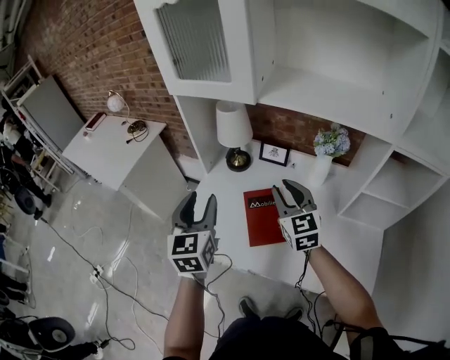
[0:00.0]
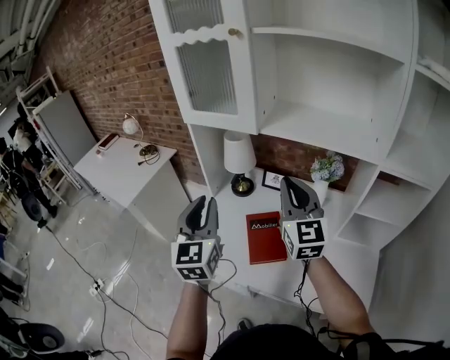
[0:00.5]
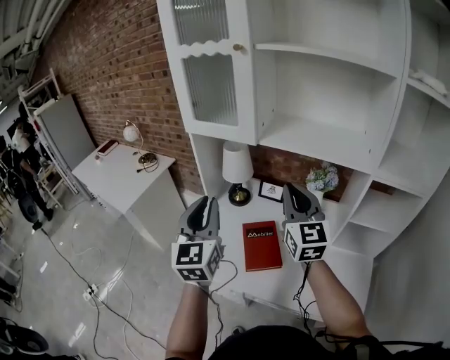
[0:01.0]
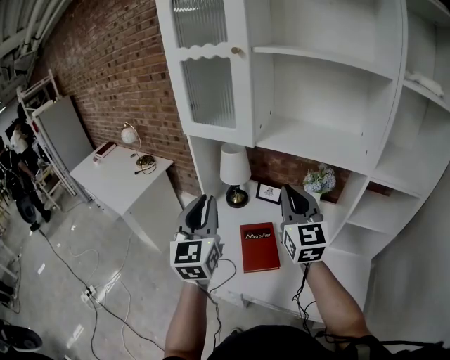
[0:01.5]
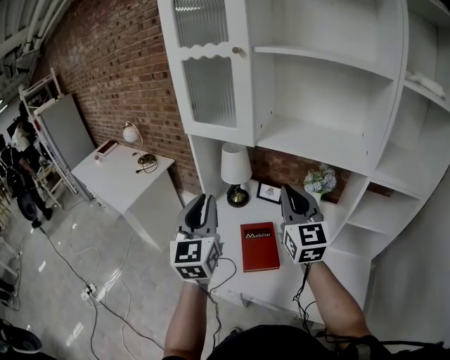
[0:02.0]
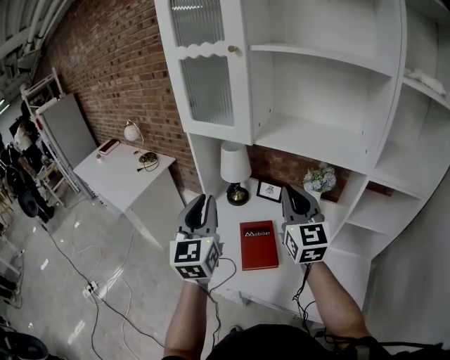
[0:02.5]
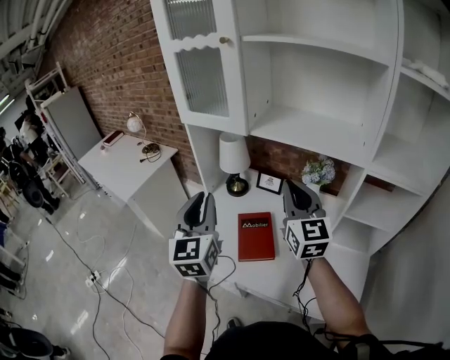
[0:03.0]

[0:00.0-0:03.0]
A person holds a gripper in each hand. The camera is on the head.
0.0 to 1.5 s: The grippers both shift upward by some 15 cm. The left gripper closes.
1.5 to 3.0 s: The grippers stay close to where they were, moving slightly.

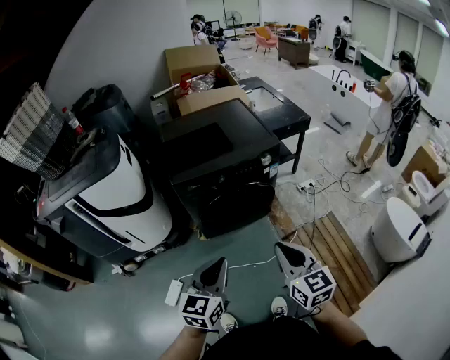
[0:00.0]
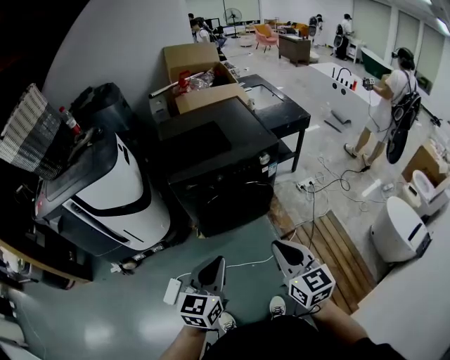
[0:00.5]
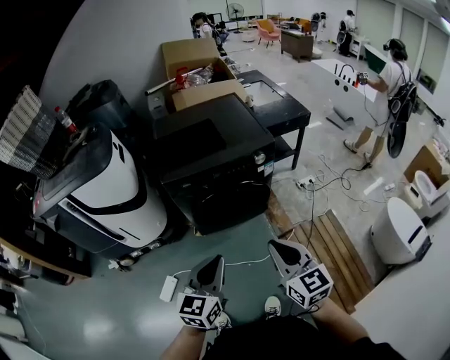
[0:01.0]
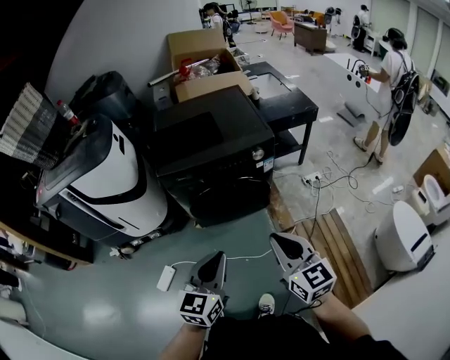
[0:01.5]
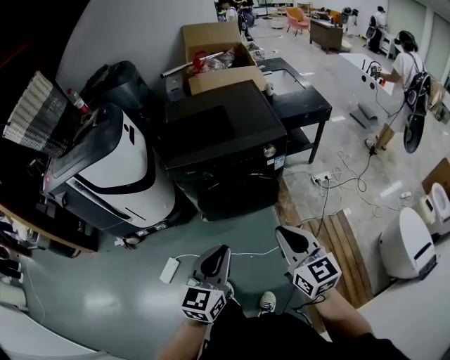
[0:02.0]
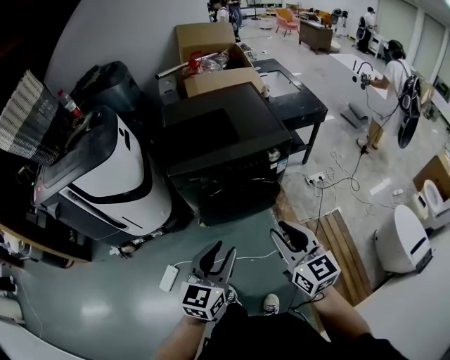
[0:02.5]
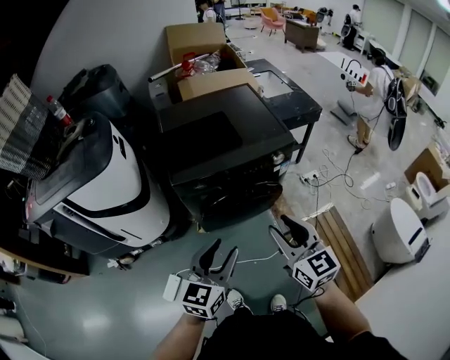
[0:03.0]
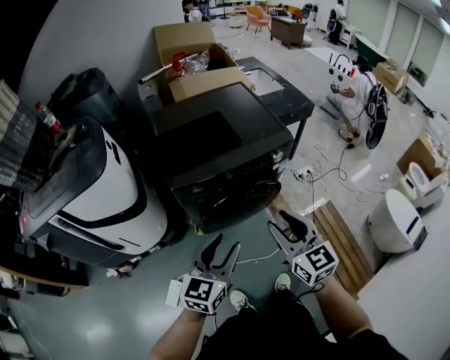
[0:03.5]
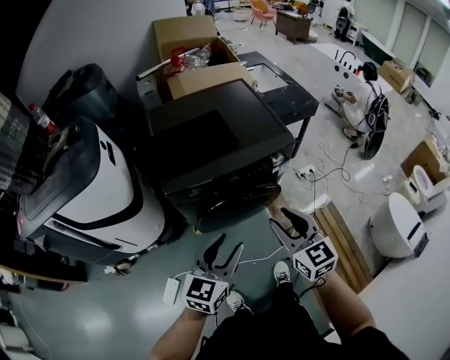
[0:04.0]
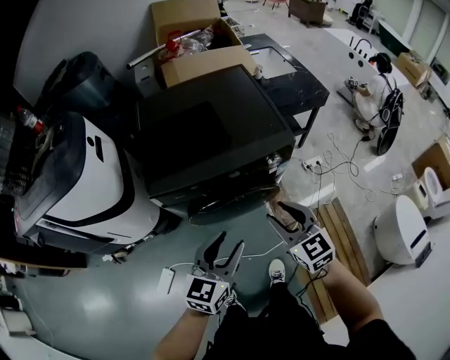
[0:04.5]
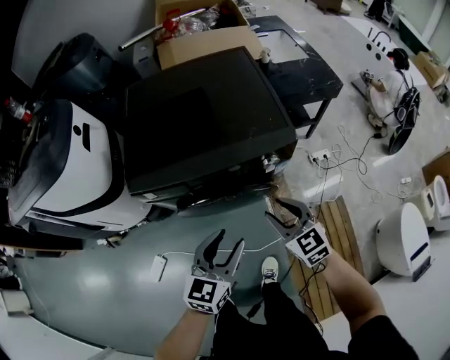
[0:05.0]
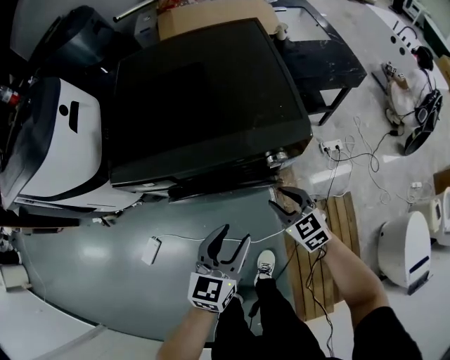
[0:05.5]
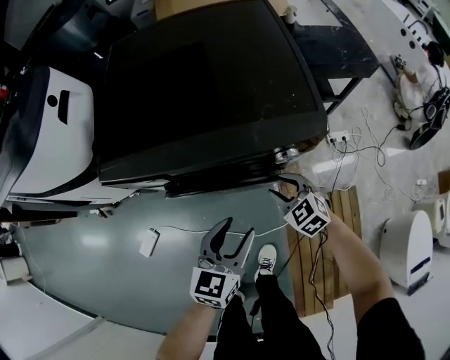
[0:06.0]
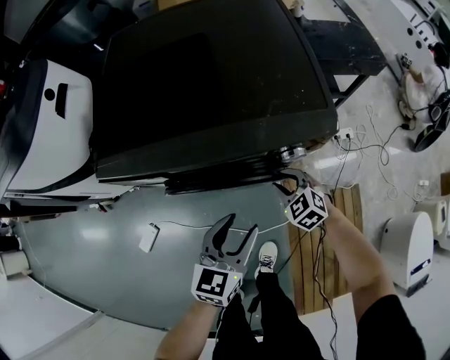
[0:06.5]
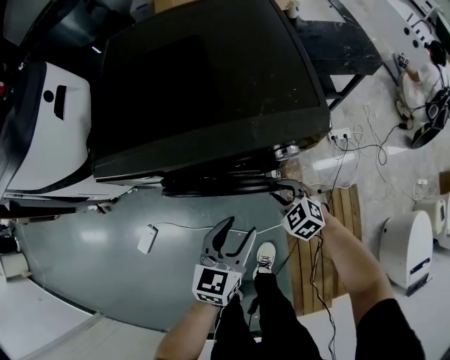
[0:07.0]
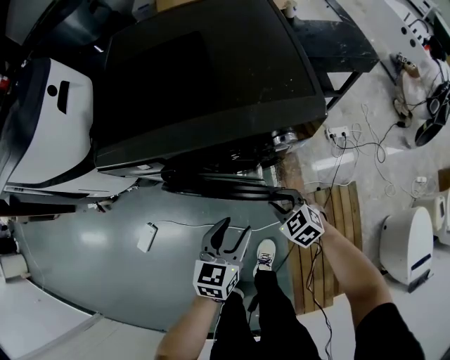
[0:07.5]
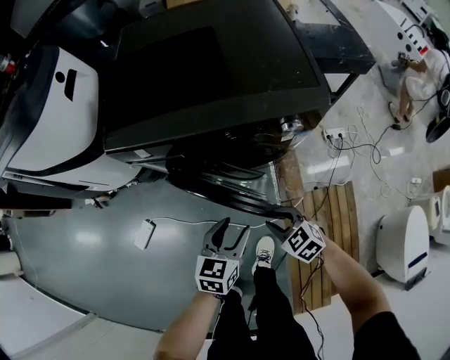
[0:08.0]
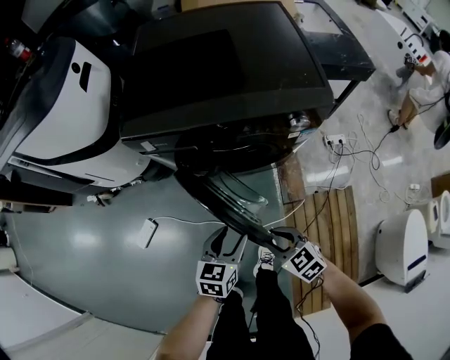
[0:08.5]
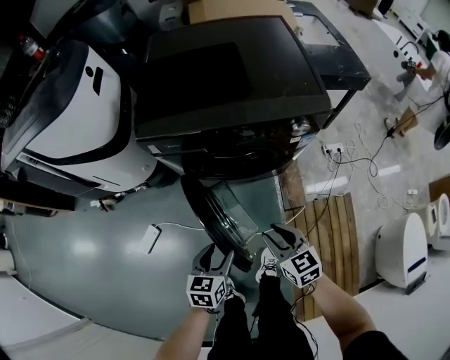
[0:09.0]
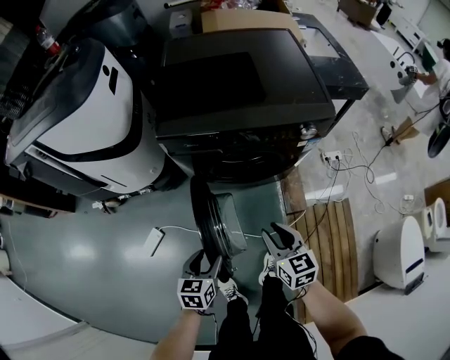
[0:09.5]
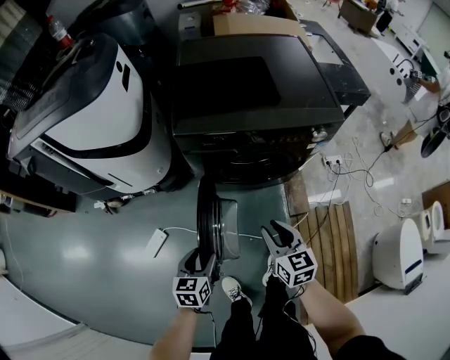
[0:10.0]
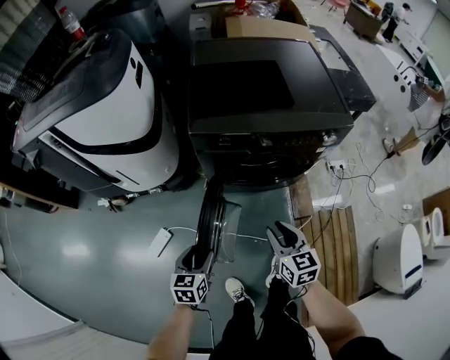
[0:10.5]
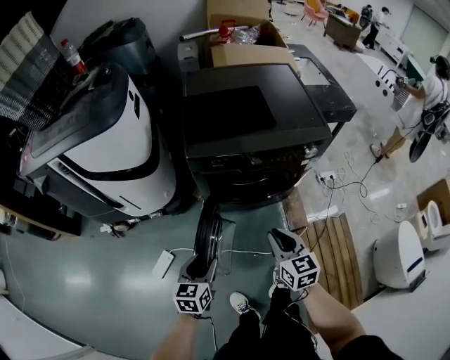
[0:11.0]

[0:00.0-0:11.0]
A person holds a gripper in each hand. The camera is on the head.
0.0 to 2.0 s: The left gripper is displaced to the right by approximately 10 cm. Meanwhile the right gripper moves to the right and forward, roughly 10 cm.
2.0 to 3.5 s: Both grippers travel together to the left and forward, roughly 15 cm. The right gripper opens its fingers; the left gripper opens its fingers.
3.5 to 5.5 s: The left gripper goes roughly 30 cm to the right, downward and forward, and changes its angle by approximately 20 degrees; the right gripper heads downward, forward and to the right, covering about 40 cm, and turns by roughly 40 degrees.
5.5 to 7.5 s: The two grippers go approximately 10 cm downward.
7.5 to 9.0 s: The left gripper travels to the left and backward by some 20 cm. The right gripper travels backward, to the left and upward by roughly 20 cm, and rotates roughly 30 degrees.
9.0 to 11.0 s: The right gripper heads upward and to the left, covering approximately 15 cm. The left gripper heads to the left and upward, covering roughly 20 cm.

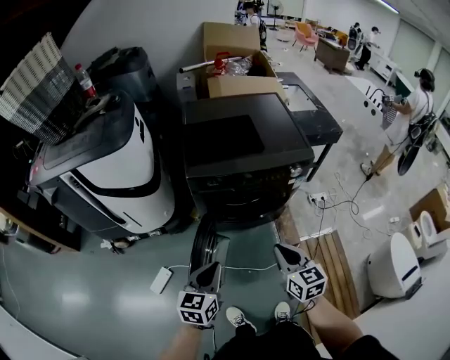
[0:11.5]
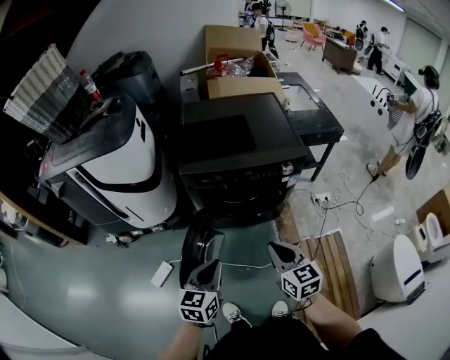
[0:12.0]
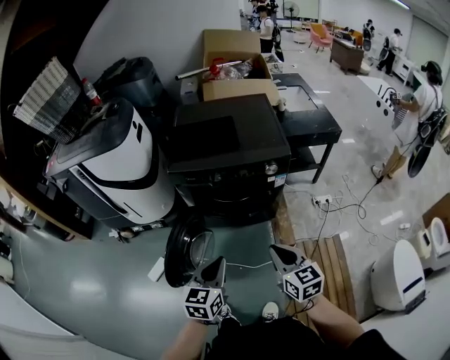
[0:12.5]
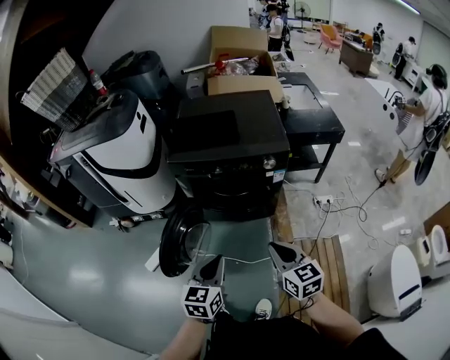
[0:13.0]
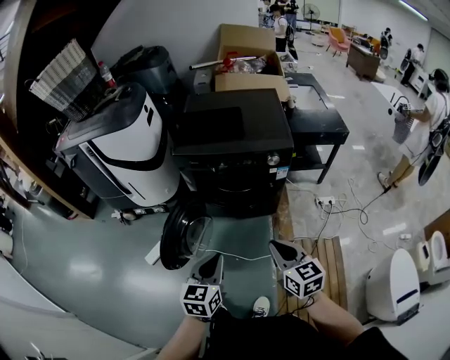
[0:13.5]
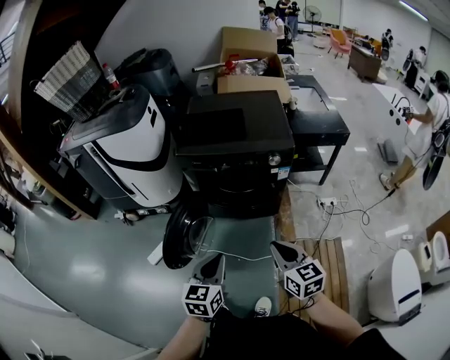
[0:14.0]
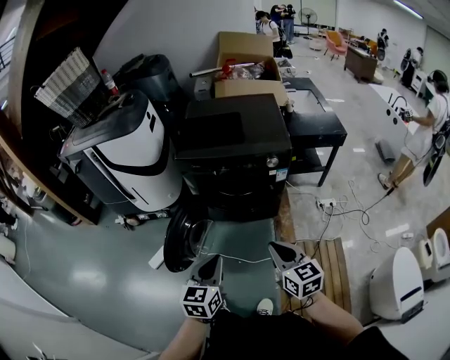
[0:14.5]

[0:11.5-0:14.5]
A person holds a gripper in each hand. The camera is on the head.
11.5 to 13.0 s: Both grippers travel together to the right and backward, roughly 20 cm.
13.0 to 14.5 s: The left gripper ends up roughly 5 cm from where it was.

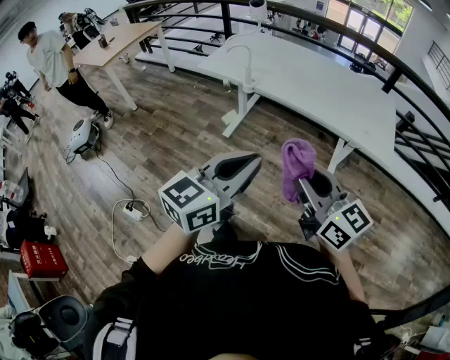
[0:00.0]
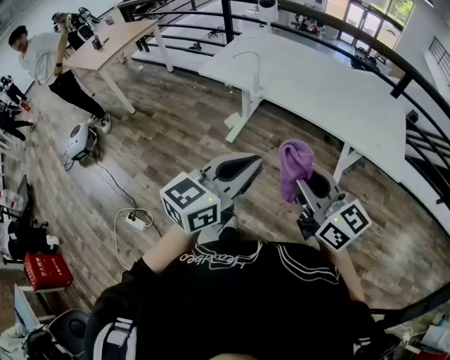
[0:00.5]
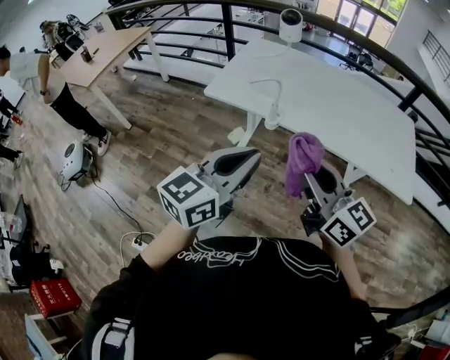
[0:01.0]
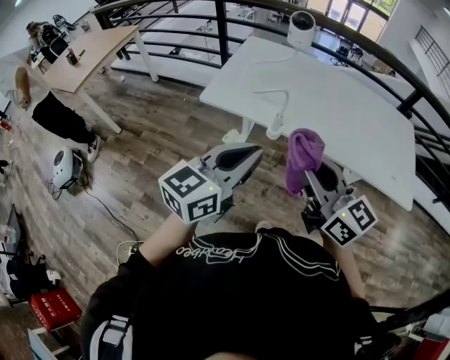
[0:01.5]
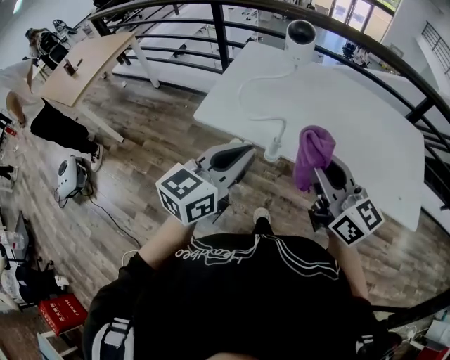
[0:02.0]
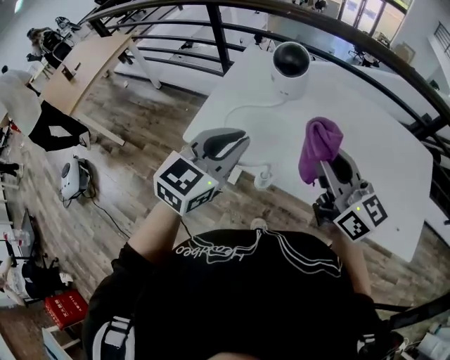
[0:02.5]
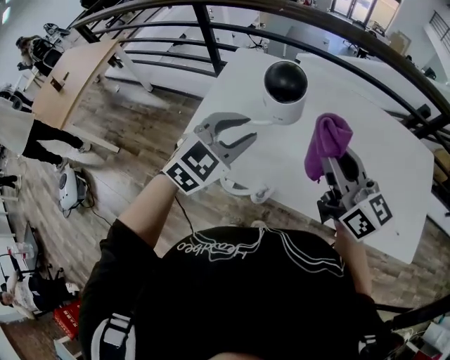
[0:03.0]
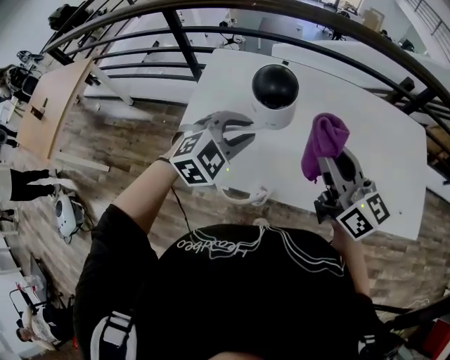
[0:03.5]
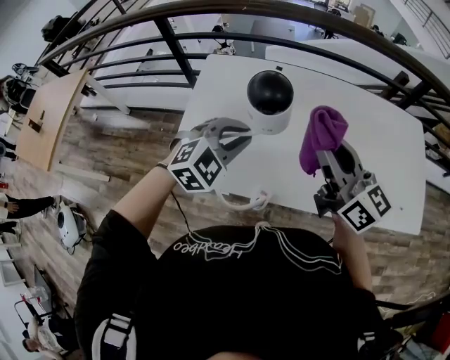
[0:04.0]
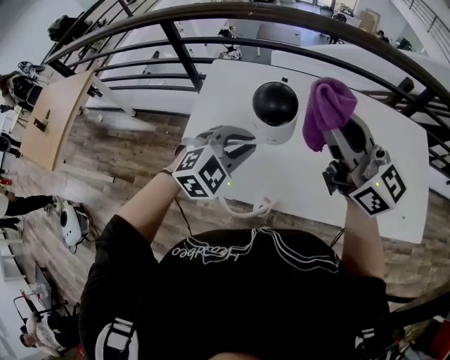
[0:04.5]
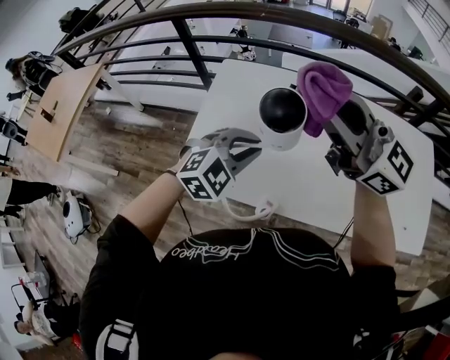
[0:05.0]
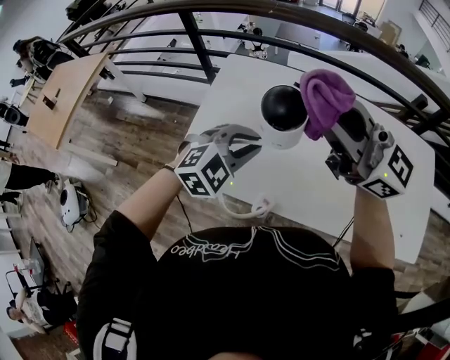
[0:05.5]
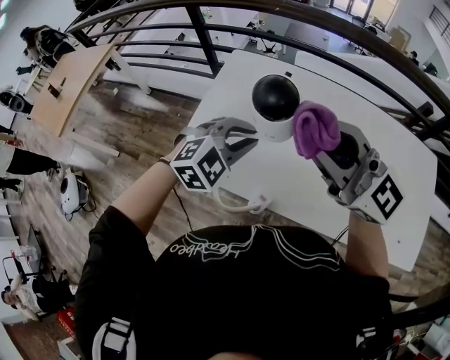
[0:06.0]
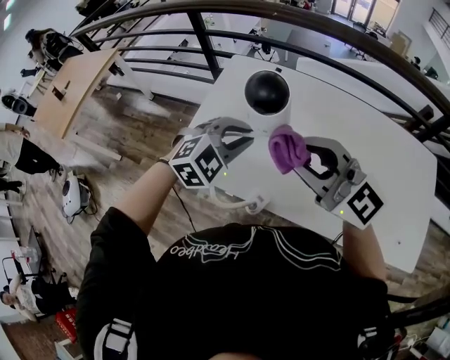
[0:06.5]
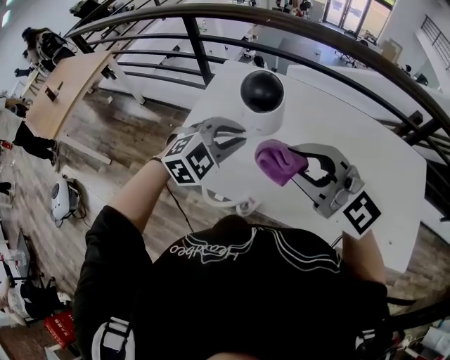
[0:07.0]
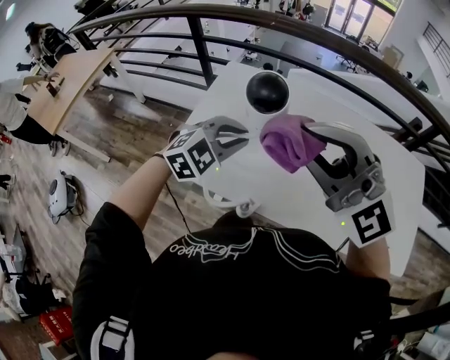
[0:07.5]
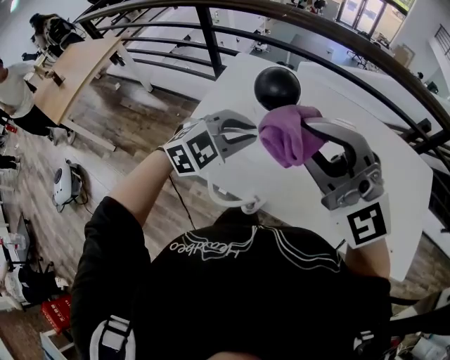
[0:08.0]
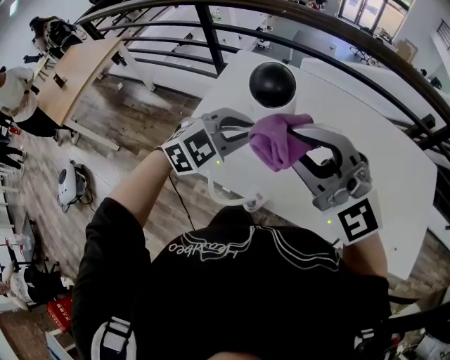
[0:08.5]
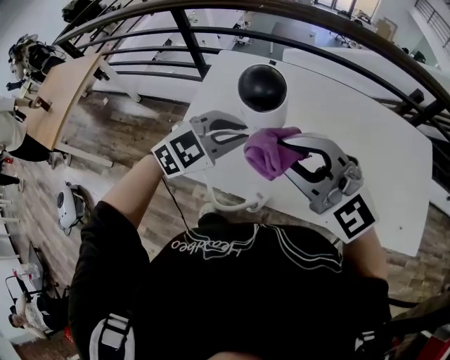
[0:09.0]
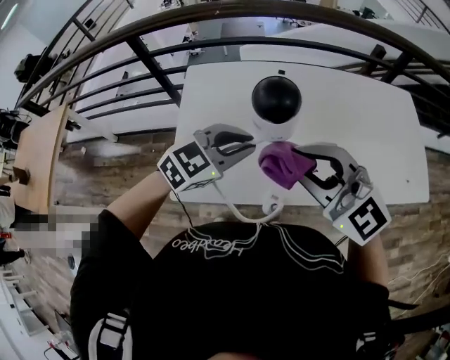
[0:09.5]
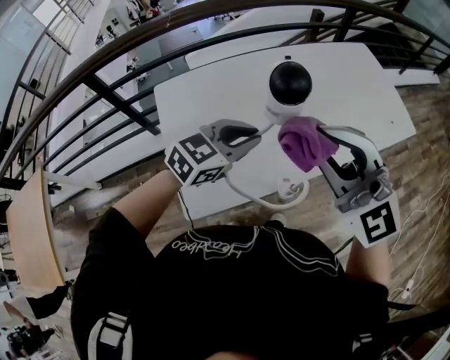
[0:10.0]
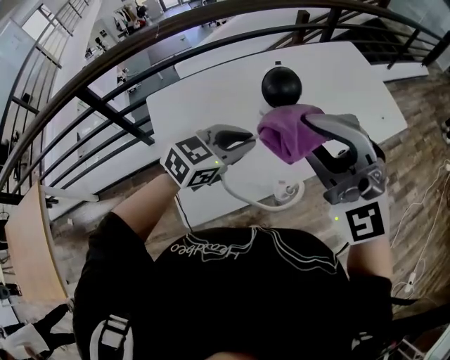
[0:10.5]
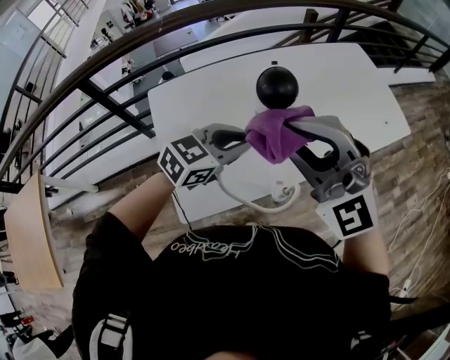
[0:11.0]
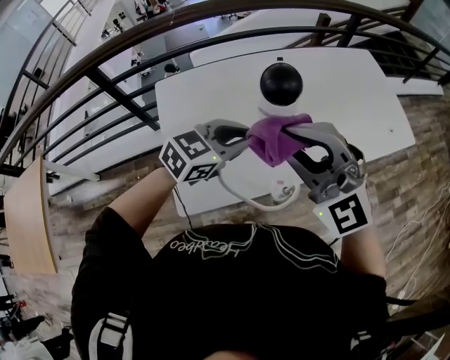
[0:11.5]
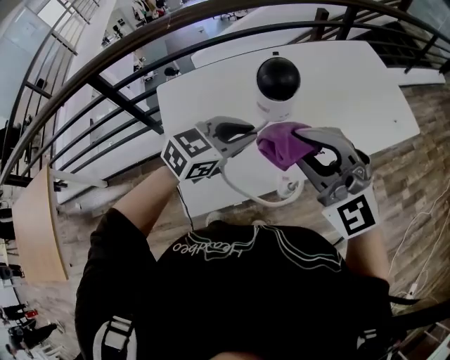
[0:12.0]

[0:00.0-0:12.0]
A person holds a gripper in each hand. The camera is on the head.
0.0 to 2.0 s: The pair of grippers is taken forward, approximately 50 cm.
2.0 to 4.0 s: The grippers both shift forward by some 30 cm. The left gripper twists about 50 degrees clockwise, seen from behind.
4.0 to 6.0 s: The right gripper goes about 10 cm upward and to the left, and turns by some 40 degrees.
6.0 to 8.0 s: The right gripper moves roughly 5 cm downward and comes back, and rotates approximately 40 degrees.
8.0 to 10.0 s: The right gripper moves approximately 10 cm downward and comes back, and swivels about 50 degrees, while the left gripper swivels roughly 40 degrees.
10.0 to 12.0 s: The grippers make only small movements.
